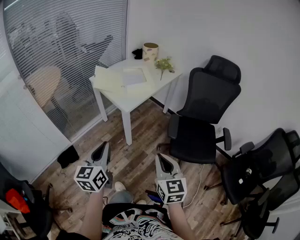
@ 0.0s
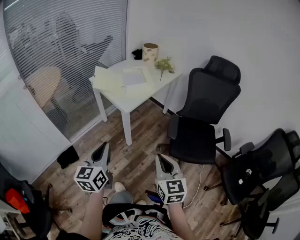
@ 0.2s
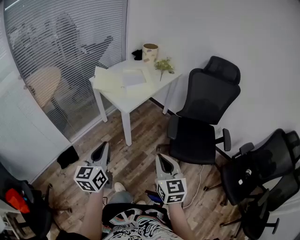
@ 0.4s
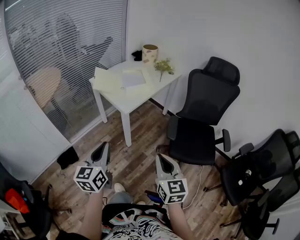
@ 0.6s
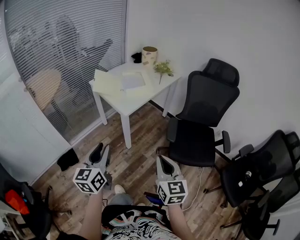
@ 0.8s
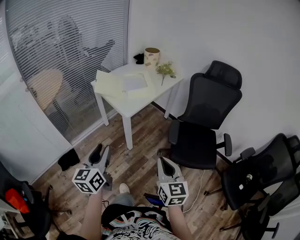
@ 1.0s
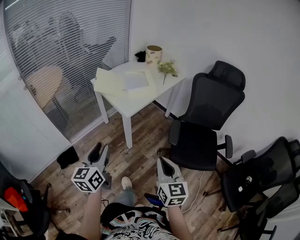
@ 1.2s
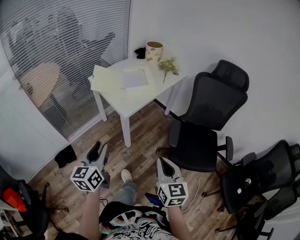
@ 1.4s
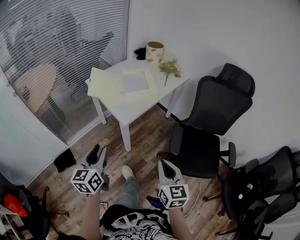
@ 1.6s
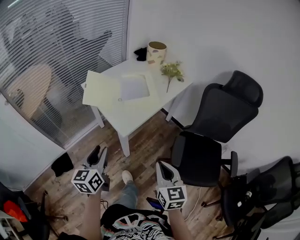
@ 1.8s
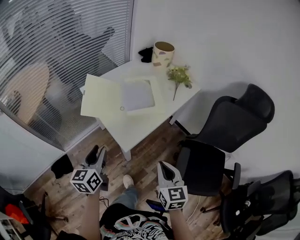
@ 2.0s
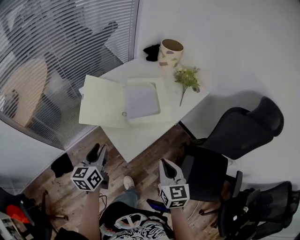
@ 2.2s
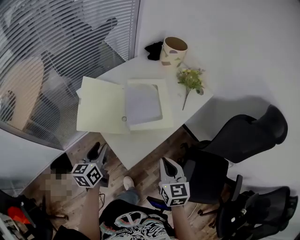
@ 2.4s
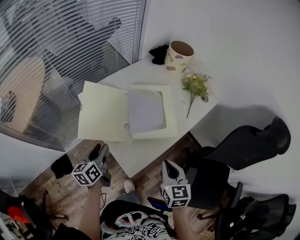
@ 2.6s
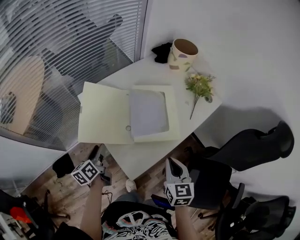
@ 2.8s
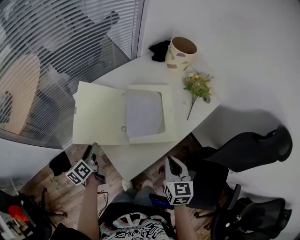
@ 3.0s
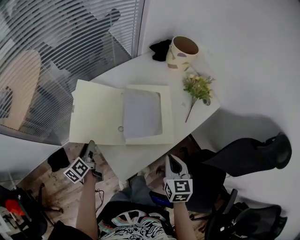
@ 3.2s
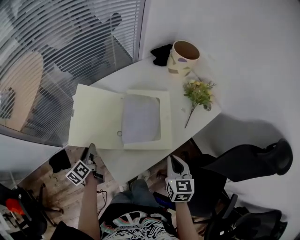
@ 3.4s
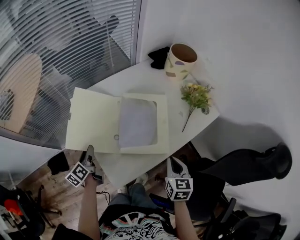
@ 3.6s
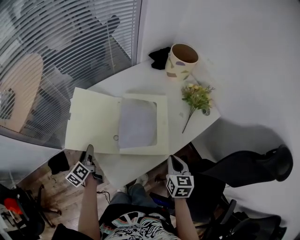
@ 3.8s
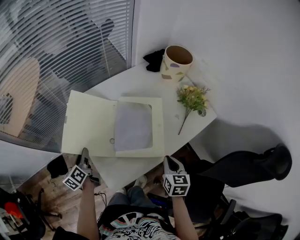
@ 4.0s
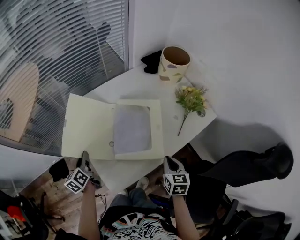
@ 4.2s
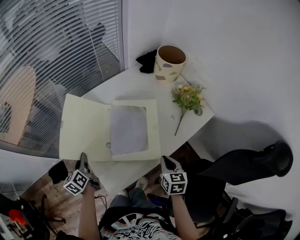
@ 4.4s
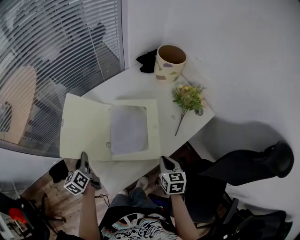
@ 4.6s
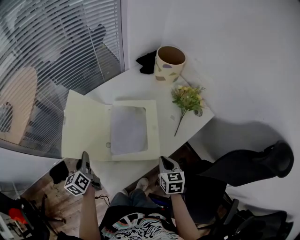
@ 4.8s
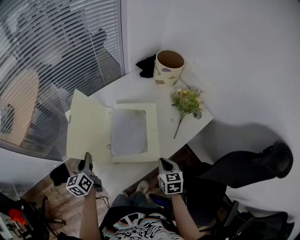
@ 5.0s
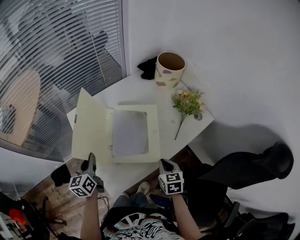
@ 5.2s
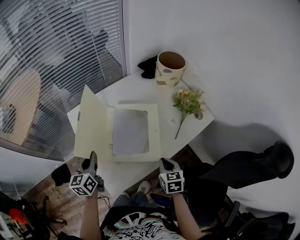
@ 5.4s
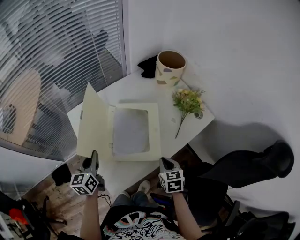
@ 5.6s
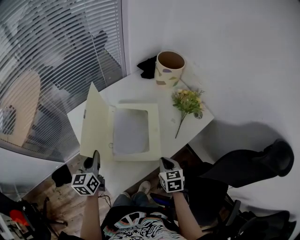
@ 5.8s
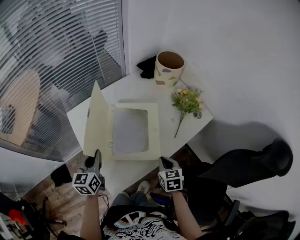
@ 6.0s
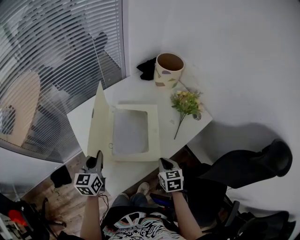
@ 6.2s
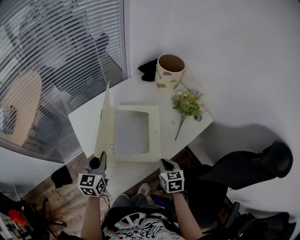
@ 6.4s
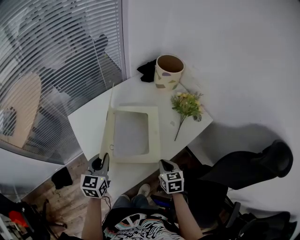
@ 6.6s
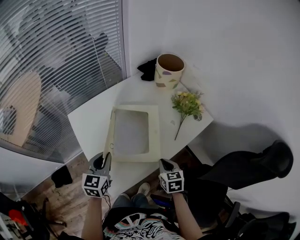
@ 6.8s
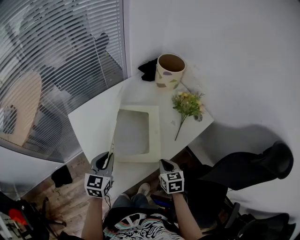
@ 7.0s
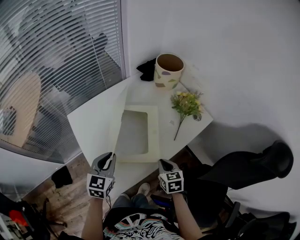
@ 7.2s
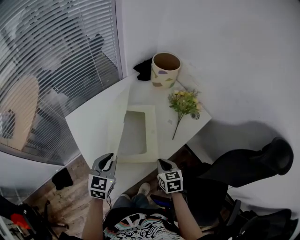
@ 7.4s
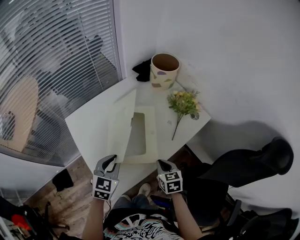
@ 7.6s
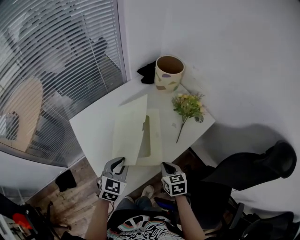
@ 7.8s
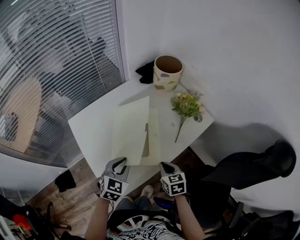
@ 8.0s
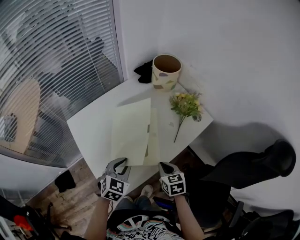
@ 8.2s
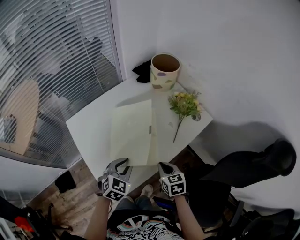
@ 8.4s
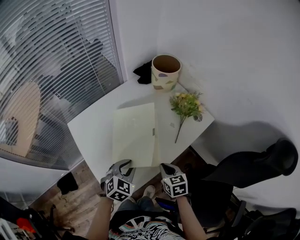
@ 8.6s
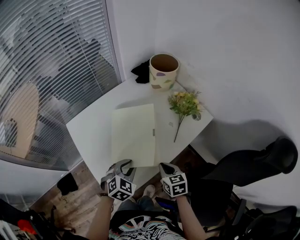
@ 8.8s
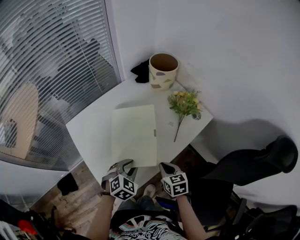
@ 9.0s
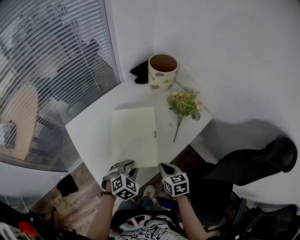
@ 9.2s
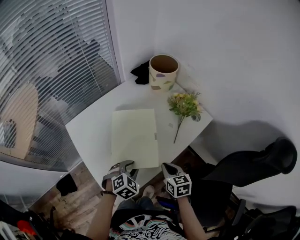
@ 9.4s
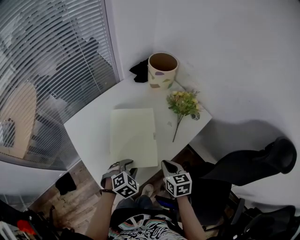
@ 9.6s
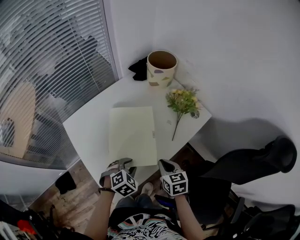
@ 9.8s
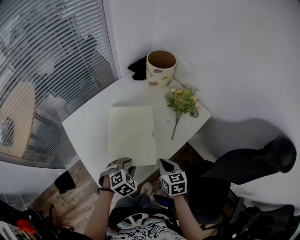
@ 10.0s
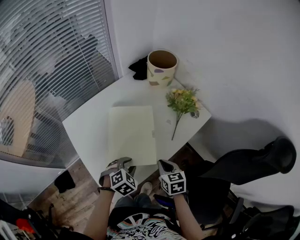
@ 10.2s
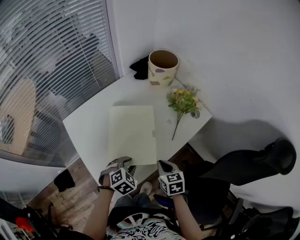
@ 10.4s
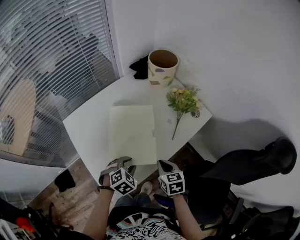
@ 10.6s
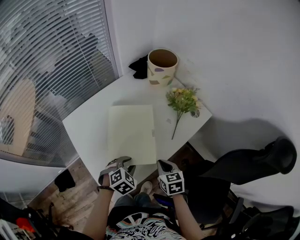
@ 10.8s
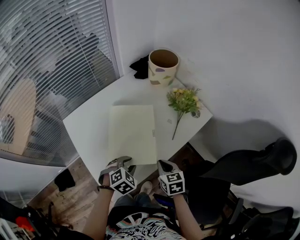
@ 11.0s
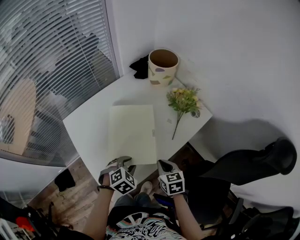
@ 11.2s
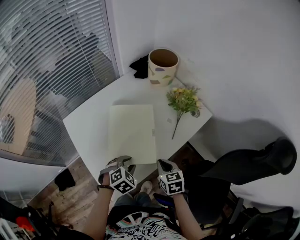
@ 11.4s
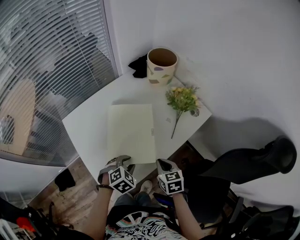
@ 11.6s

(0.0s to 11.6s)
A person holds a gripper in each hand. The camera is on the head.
0.0s - 1.4s: Both grippers travel together forward, some 5 cm. The left gripper opens.
1.4s - 2.8s: The two grippers travel together, forward, about 50 cm. The left gripper is displaced downward by some 20 cm, and swivels about 40 degrees.
2.8s - 4.4s: The right gripper heads to the right, forward and downward, covering approximately 15 cm, while the left gripper closes up.
4.4s - 5.8s: The left gripper travels to the right and upward by approximately 10 cm, and changes its angle by approximately 30 degrees.
5.8s - 7.2s: The left gripper moves to the right, some 10 cm, and turns by about 30 degrees.
7.2s - 8.8s: The left gripper goes some 10 cm to the right and downward, and changes its angle by approximately 30 degrees.
8.8s - 10.2s: The grippers stay close to where they were, moving slightly.
10.2s - 11.6s: Neither gripper changes place.

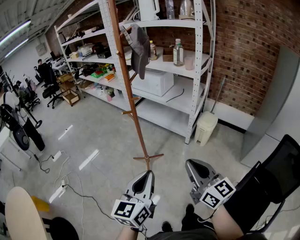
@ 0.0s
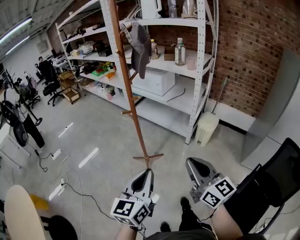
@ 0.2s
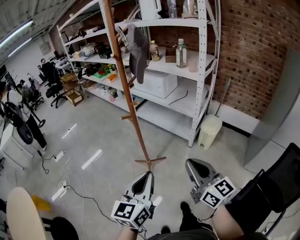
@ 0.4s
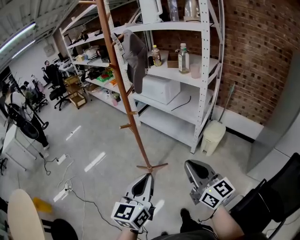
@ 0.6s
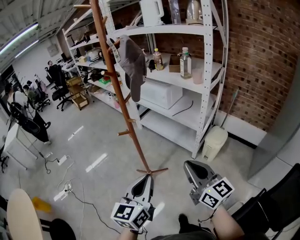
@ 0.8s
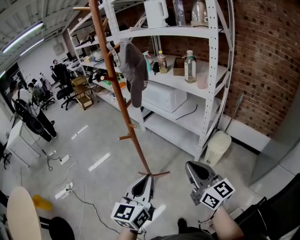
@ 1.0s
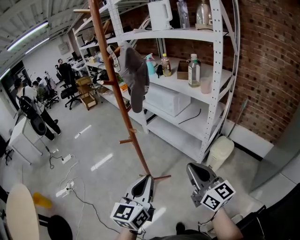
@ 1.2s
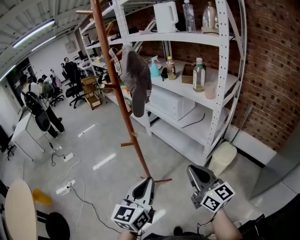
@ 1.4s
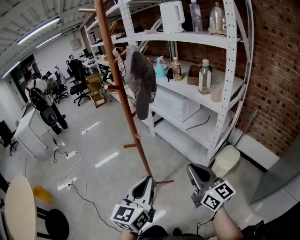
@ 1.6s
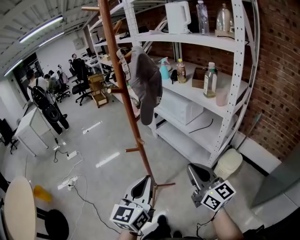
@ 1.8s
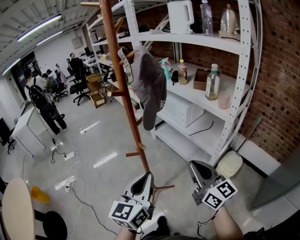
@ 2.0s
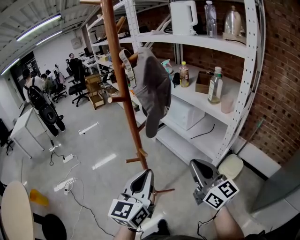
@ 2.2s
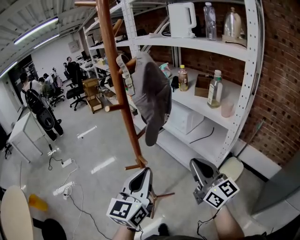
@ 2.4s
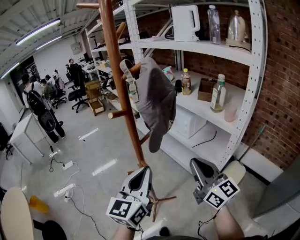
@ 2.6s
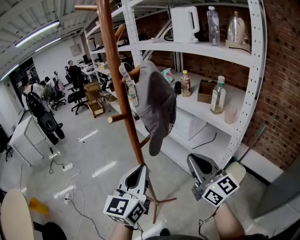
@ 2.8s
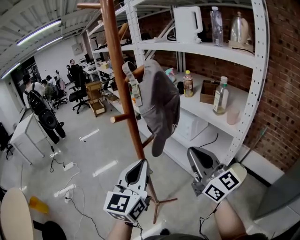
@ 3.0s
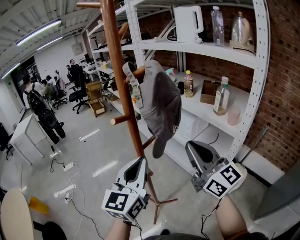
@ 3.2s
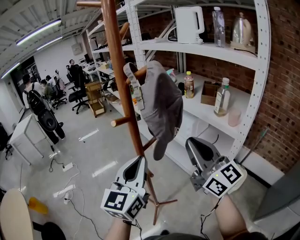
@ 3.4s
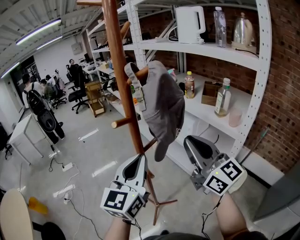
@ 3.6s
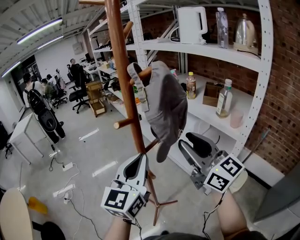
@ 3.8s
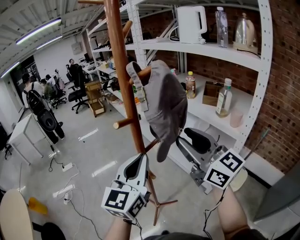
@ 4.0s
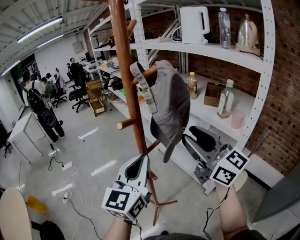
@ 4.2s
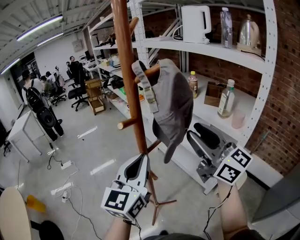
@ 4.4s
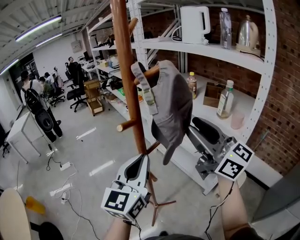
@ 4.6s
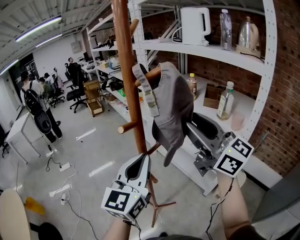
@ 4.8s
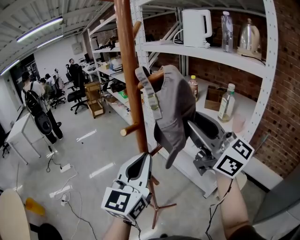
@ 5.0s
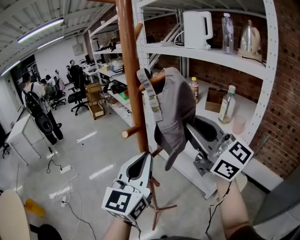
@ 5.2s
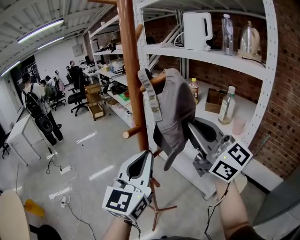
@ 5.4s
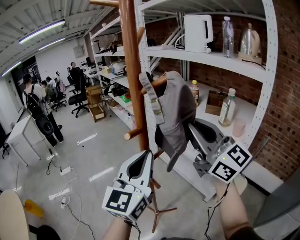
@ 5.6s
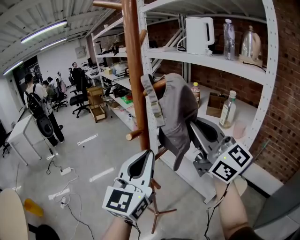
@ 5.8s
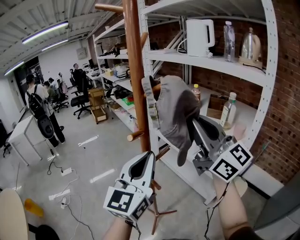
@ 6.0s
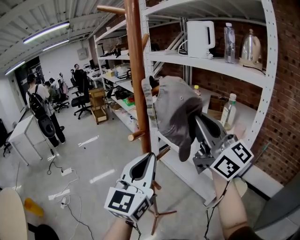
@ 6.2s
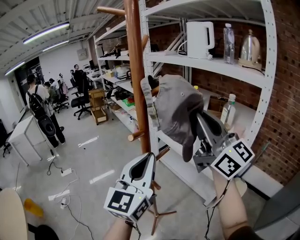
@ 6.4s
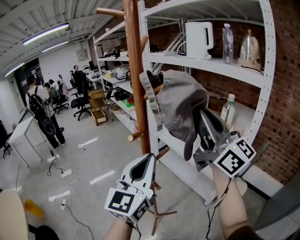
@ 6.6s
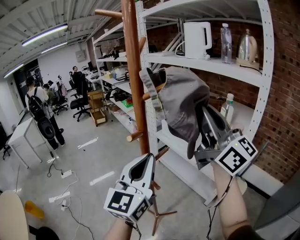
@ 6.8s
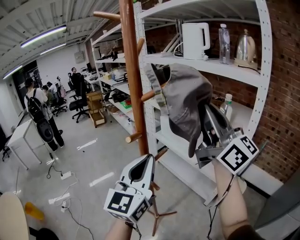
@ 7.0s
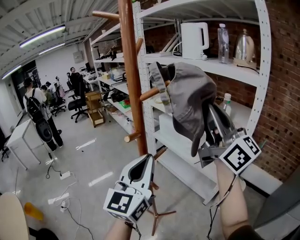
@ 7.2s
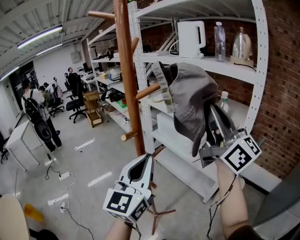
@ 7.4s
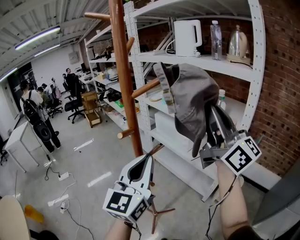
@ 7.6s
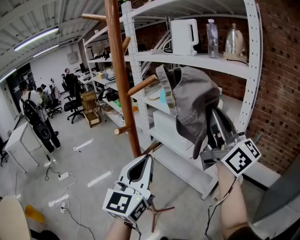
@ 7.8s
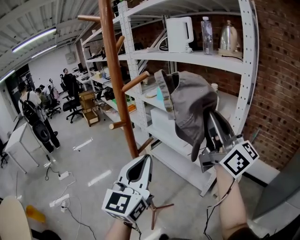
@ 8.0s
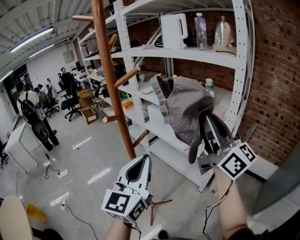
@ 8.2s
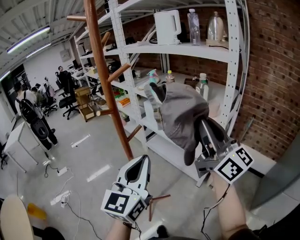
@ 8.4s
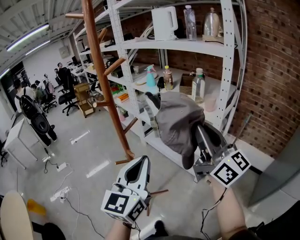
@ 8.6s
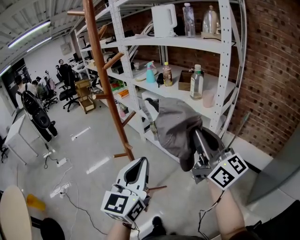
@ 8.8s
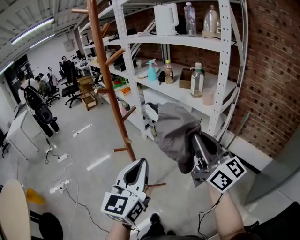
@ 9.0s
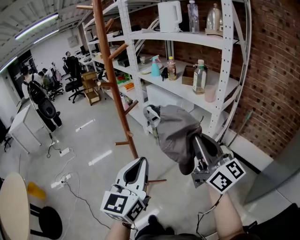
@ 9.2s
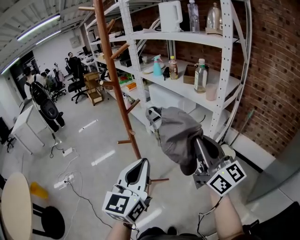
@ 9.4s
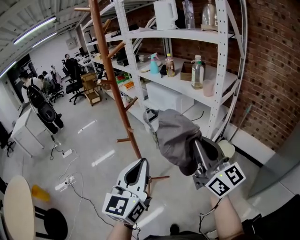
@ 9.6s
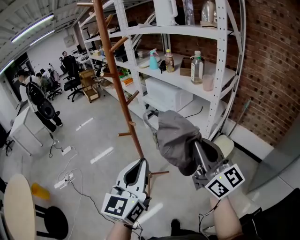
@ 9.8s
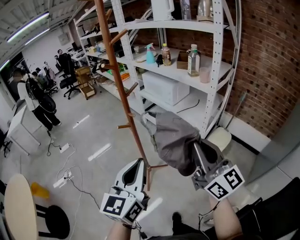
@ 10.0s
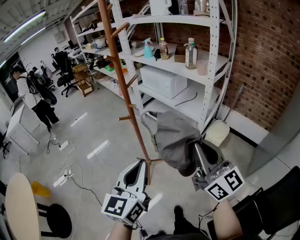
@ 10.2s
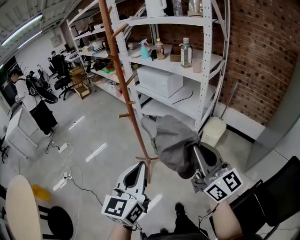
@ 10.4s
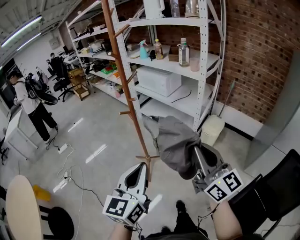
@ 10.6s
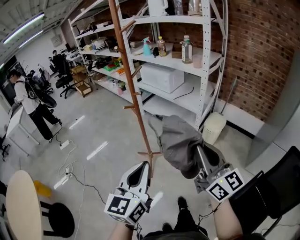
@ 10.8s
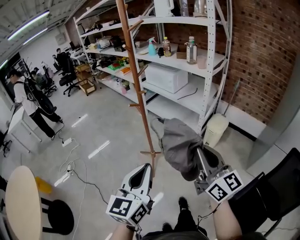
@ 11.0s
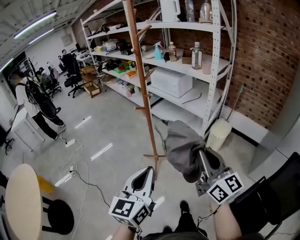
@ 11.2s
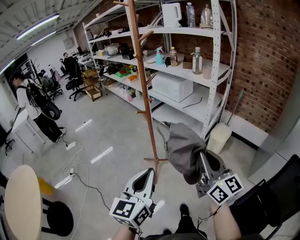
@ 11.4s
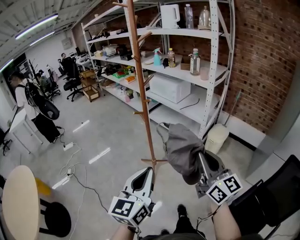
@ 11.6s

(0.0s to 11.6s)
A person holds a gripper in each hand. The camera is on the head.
0.0s - 1.4s: Both grippers move forward and to the right, some 25 cm.
1.4s - 2.8s: Both grippers travel together forward and upward, some 20 cm.
2.8s - 4.4s: The left gripper shifts by some 5 cm. The right gripper goes approximately 10 cm upward and forward, and opens.
4.4s - 5.8s: Both grippers travel together upward, roughly 5 cm. The right gripper closes.
5.8s - 7.2s: The right gripper goes approximately 10 cm upward and to the right.
7.2s - 8.8s: The left gripper heads backward, to the right and downward, covering about 20 cm, while the right gripper moves downward, backward and to the right, approximately 25 cm.
8.8s - 10.2s: The left gripper goes about 15 cm backward. Meanwhile the right gripper heads backward and downward, covering approximately 20 cm.
10.2s - 11.6s: The left gripper moves backward and to the left, about 15 cm. The right gripper heads backward, covering some 10 cm.

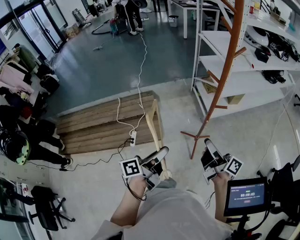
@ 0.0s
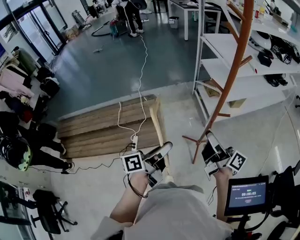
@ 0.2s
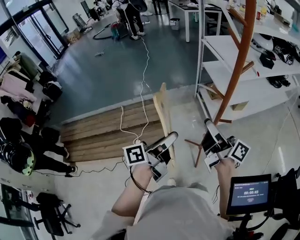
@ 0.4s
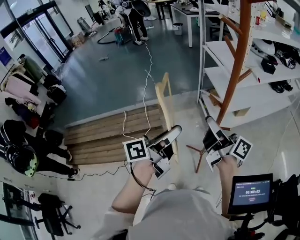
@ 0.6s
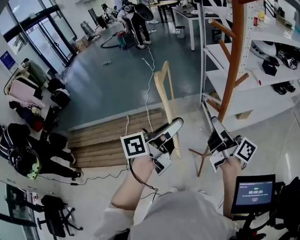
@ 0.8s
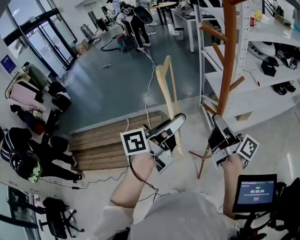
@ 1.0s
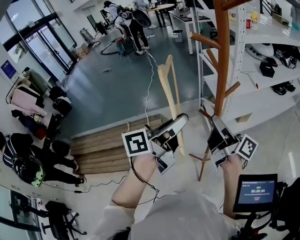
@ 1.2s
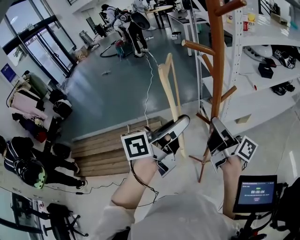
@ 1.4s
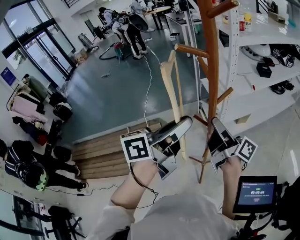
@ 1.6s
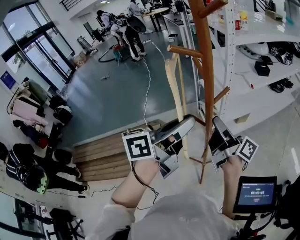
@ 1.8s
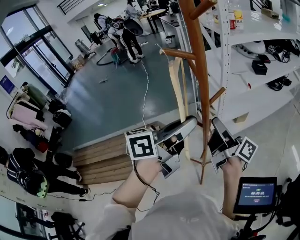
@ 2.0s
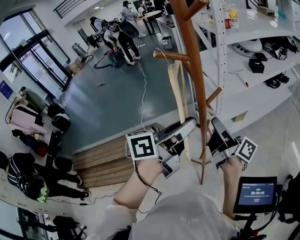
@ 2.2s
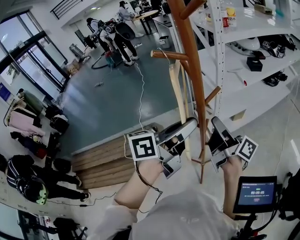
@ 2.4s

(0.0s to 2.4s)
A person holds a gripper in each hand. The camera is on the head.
0.0s - 1.2s: The left gripper moves upward, forward and to the right, some 35 cm, and swivels about 20 degrees. Meanwhile the right gripper heads forward and upward, covering some 30 cm.
1.2s - 2.4s: The grippers both shift to the right by approximately 5 cm.
